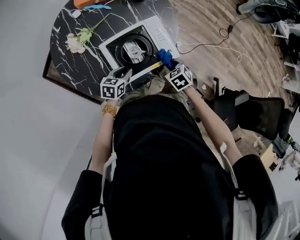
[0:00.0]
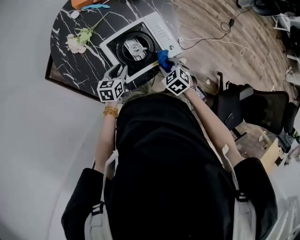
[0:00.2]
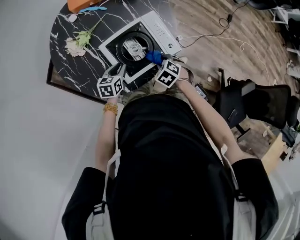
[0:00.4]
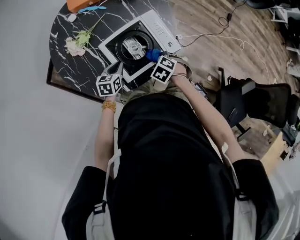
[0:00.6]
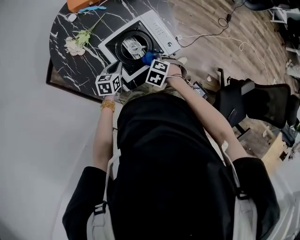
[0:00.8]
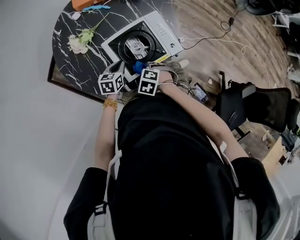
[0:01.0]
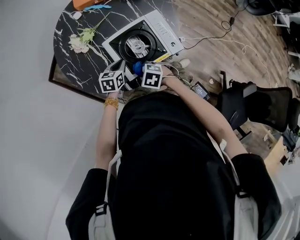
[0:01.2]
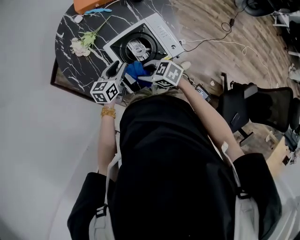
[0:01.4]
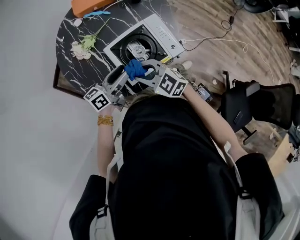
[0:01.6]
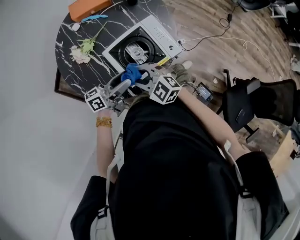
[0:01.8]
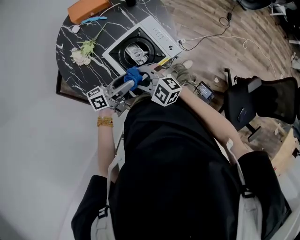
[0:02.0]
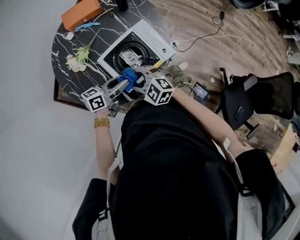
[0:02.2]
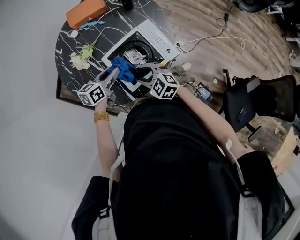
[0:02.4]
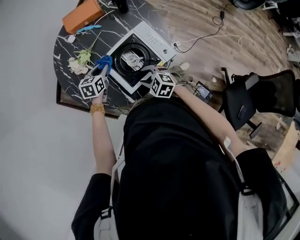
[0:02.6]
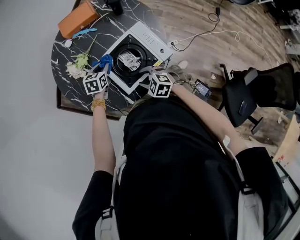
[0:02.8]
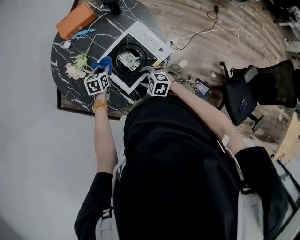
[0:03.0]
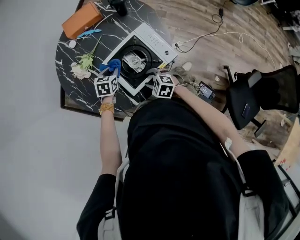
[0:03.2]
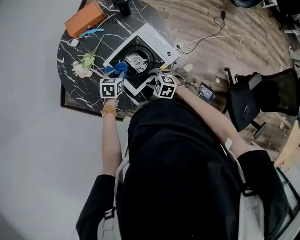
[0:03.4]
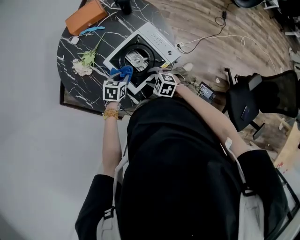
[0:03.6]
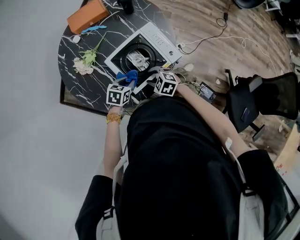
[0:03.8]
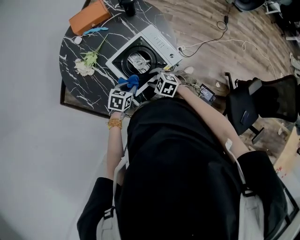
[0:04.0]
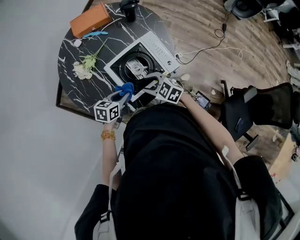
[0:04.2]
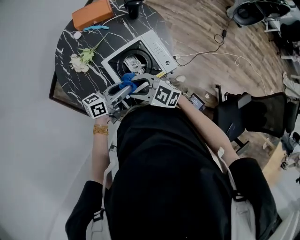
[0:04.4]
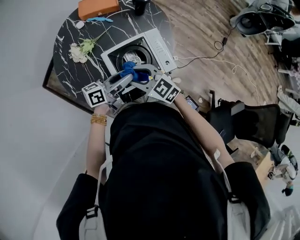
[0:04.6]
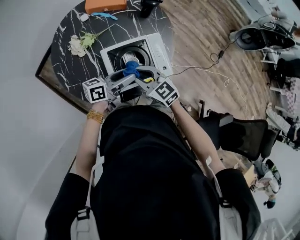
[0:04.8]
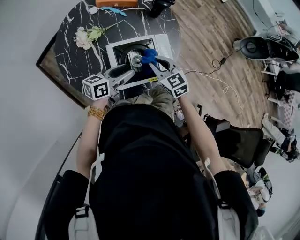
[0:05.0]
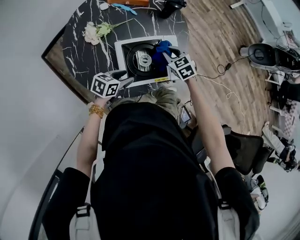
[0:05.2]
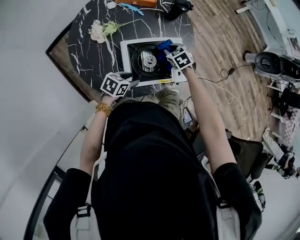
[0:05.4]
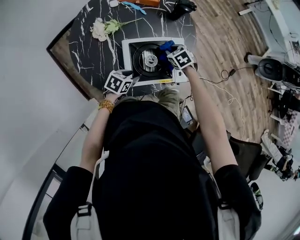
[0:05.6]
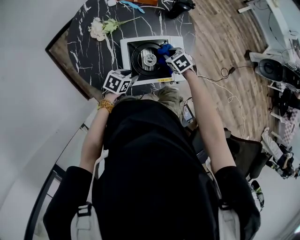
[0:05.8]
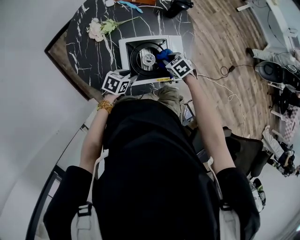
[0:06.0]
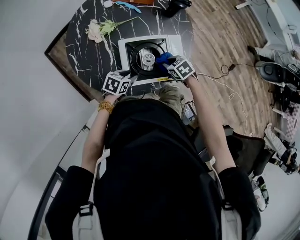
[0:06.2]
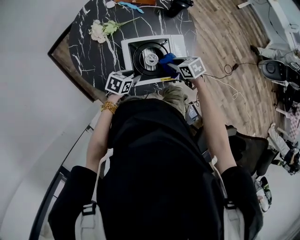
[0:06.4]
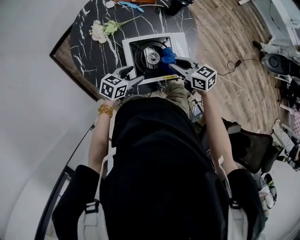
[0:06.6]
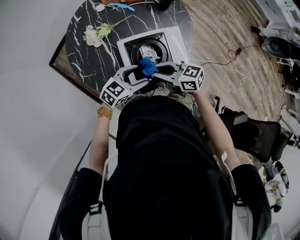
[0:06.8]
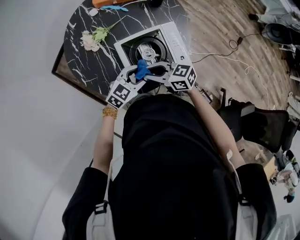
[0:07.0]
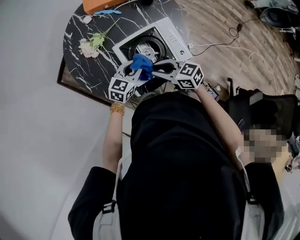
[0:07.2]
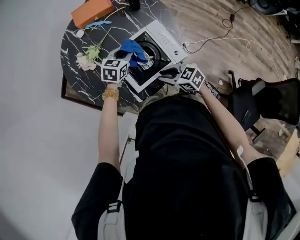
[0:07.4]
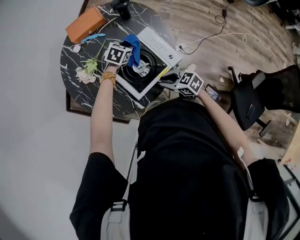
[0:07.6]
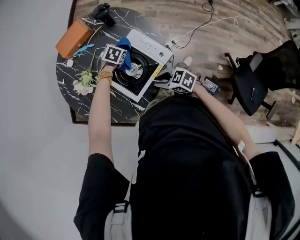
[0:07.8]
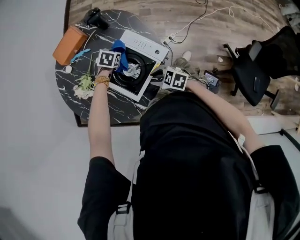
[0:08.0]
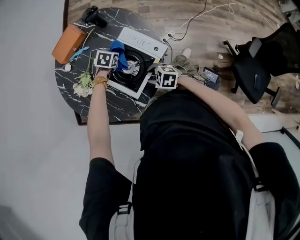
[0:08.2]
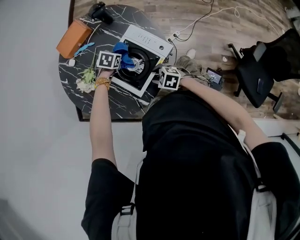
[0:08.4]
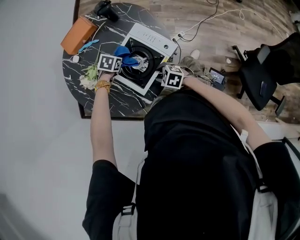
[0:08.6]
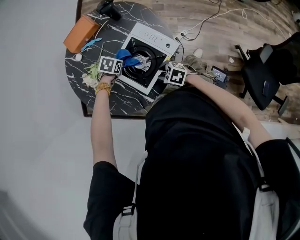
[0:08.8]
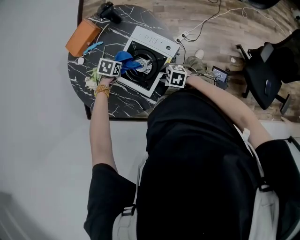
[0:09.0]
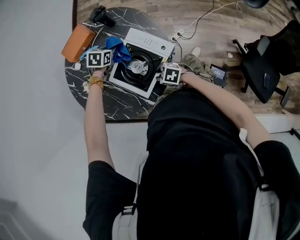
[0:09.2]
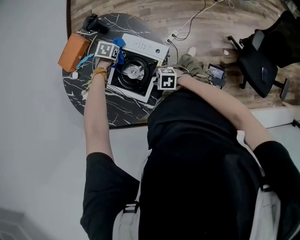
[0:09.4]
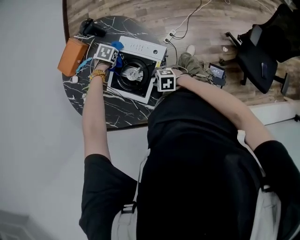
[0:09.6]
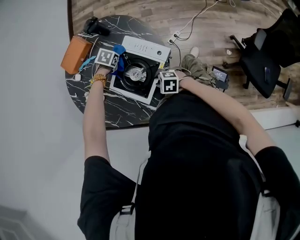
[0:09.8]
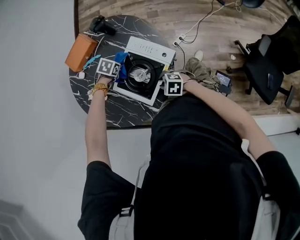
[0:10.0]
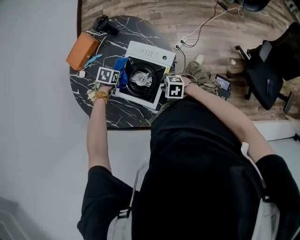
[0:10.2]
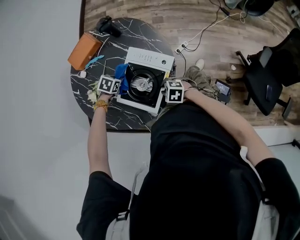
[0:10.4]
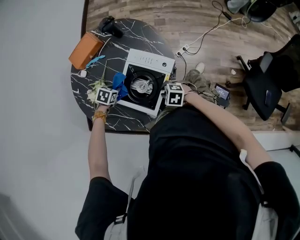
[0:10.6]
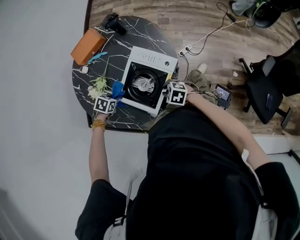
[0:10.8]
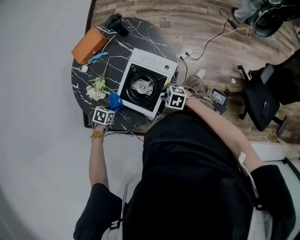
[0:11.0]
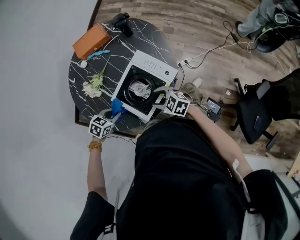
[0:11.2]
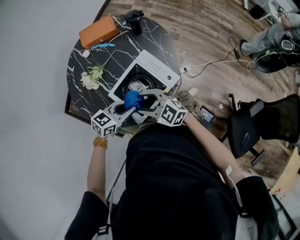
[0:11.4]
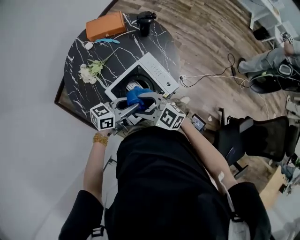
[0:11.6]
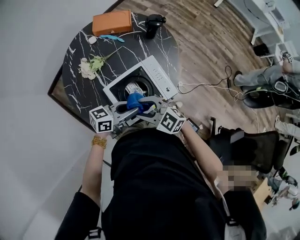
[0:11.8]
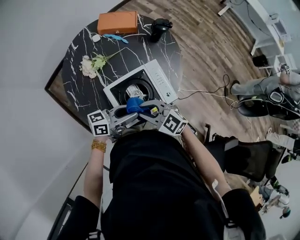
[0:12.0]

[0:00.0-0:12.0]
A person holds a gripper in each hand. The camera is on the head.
0:00.0 to 0:01.6: The left gripper travels upward by some 15 cm, points its fingers roughly 40 degrees further upward, and opens up, while the right gripper shifts by roughly 25 cm, and tilts its fingers some 40 degrees upward.
0:01.6 to 0:03.0: Both grippers travel together downward, roughly 15 cm. The right gripper rotates about 30 degrees. Meanwhile the left gripper tips its fingers downward by some 50 degrees, and closes its fingers.
0:03.0 to 0:04.4: The right gripper moves upward, some 15 cm, and changes its angle by roughly 30 degrees; the left gripper moves some 20 cm, and tilts its fingers some 40 degrees upward.
0:04.4 to 0:06.0: The left gripper travels downward by some 15 cm, and points its fingers approximately 40 degrees further downward. Meanwhile the right gripper moves roughly 20 cm, points its fingers about 40 degrees further downward, and closes.
0:06.0 to 0:07.6: The right gripper moves approximately 15 cm, and points its fingers approximately 30 degrees further upward. Meanwhile the left gripper travels upward and back again, approximately 10 cm each way, and rolls clockwise, seen from behind, by about 40 degrees.
0:07.6 to 0:09.0: The left gripper moves approximately 10 cm. The right gripper travels downward by about 5 cm, and swivels some 20 degrees.
0:10.4 to 0:12.0: The left gripper ends up some 25 cm from where it was, and tips its fingers upward by some 80 degrees. Meanwhile the right gripper goes about 15 cm upward, tilts its fingers approximately 30 degrees upward, and opens, then closes once more.

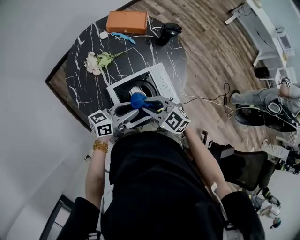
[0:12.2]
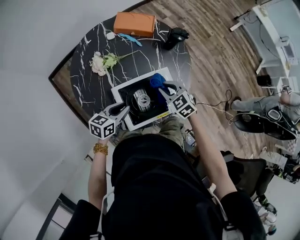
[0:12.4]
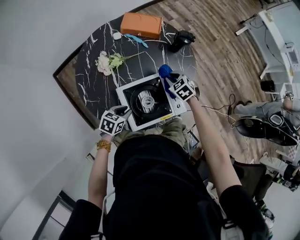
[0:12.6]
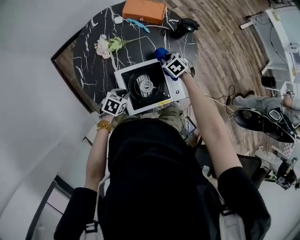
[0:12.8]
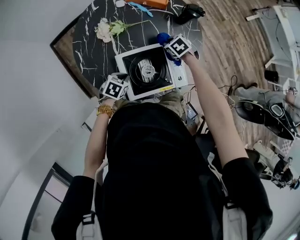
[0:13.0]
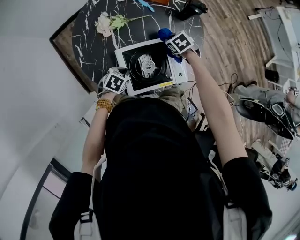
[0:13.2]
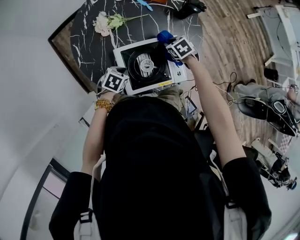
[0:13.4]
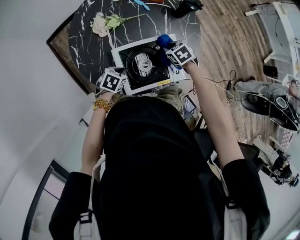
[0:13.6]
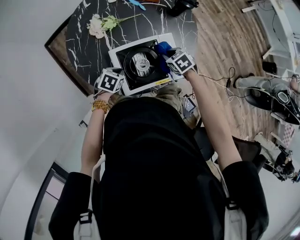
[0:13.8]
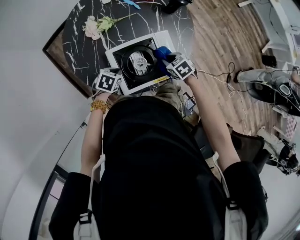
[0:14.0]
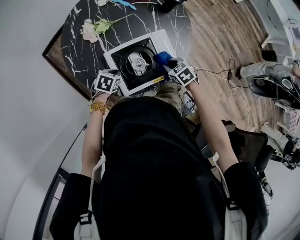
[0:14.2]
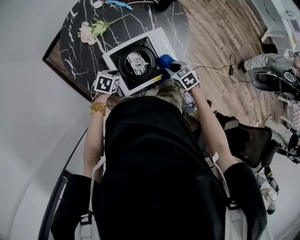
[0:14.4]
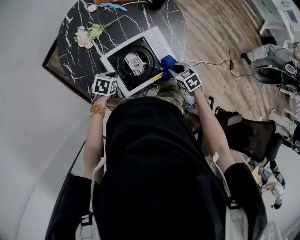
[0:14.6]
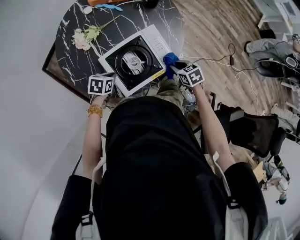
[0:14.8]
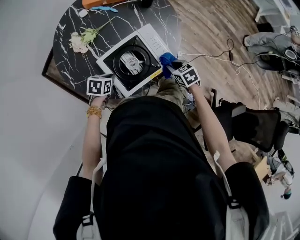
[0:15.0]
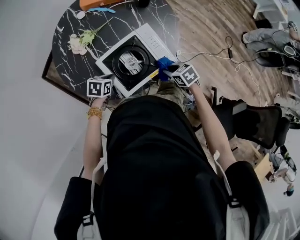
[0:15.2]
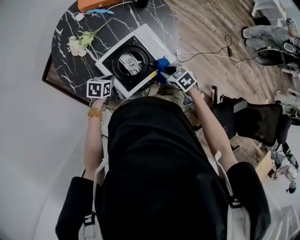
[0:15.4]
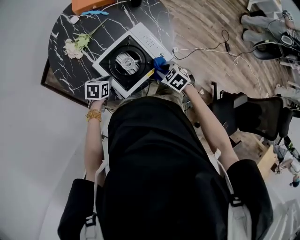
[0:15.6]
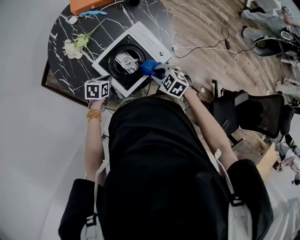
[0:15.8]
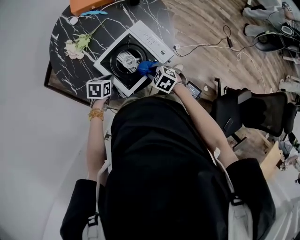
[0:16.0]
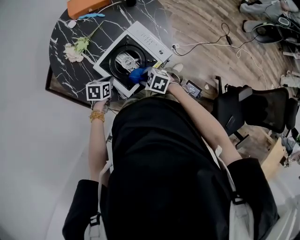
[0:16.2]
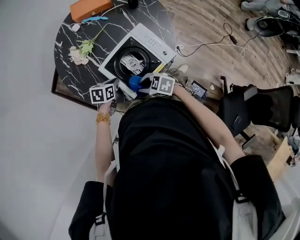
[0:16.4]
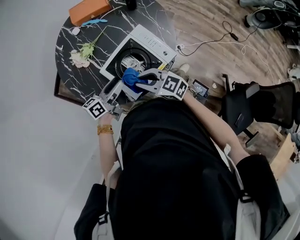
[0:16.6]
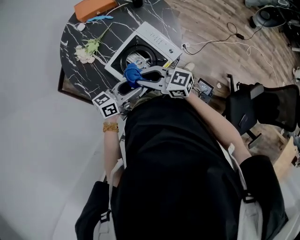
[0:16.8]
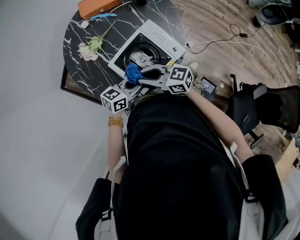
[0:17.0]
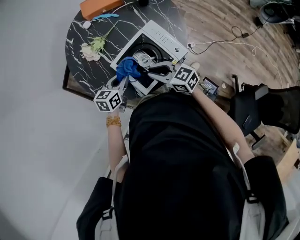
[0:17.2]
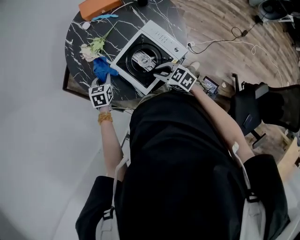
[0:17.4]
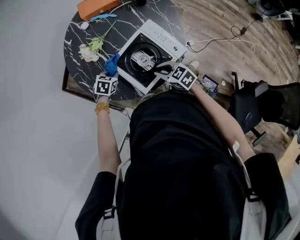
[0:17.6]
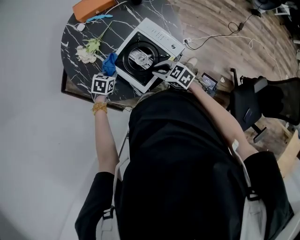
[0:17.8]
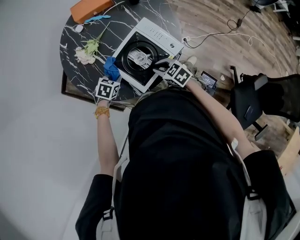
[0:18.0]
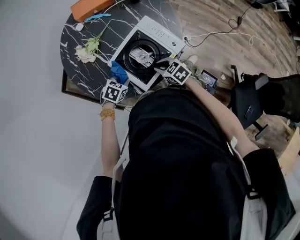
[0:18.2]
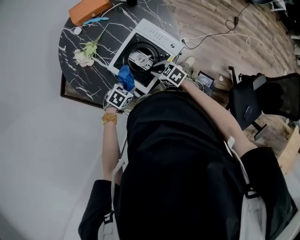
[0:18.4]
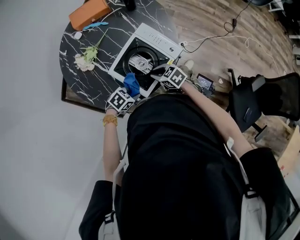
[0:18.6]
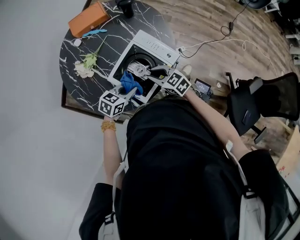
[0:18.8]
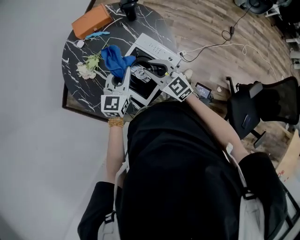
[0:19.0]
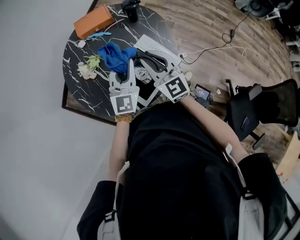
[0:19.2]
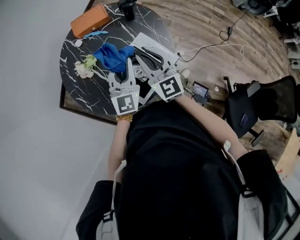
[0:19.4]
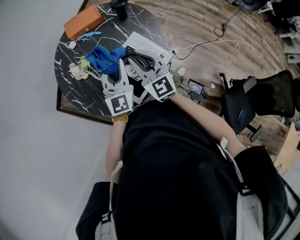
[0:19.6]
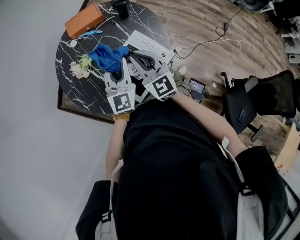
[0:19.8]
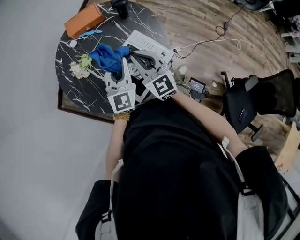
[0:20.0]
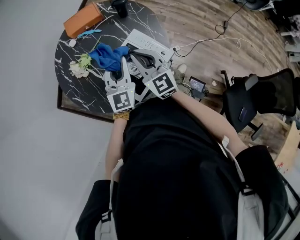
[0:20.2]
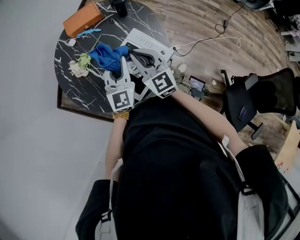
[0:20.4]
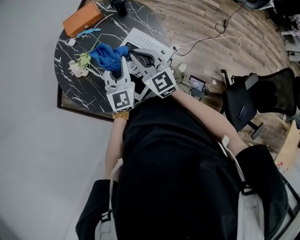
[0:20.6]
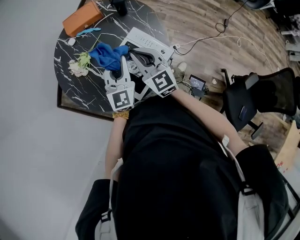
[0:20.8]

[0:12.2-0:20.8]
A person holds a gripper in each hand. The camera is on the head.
0:12.2 to 0:13.6: The right gripper moves about 20 cm, and tilts its fingers about 30 degrees downward; the left gripper moves downward, roughly 15 cm, angles its fingers downward, by roughly 60 degrees, and closes up.
0:13.6 to 0:15.0: The right gripper shifts some 20 cm backward and to the right, and rotates roughly 30 degrees.
0:15.0 to 0:16.6: The left gripper travels upward by roughly 10 cm, tilts its fingers about 50 degrees upward, and opens up. Meanwhile the right gripper moves roughly 25 cm, and tilts its fingers approximately 40 degrees upward.
0:16.6 to 0:18.0: The two grippers go some 10 cm downward. The left gripper tips its fingers downward by about 60 degrees, and closes, while the right gripper turns by approximately 30 degrees.
0:18.0 to 0:19.4: The two grippers go some 25 cm upward. The right gripper tilts its fingers some 40 degrees upward, while the left gripper points its fingers some 70 degrees further upward.
0:19.4 to 0:20.8: The grippers move only a little.

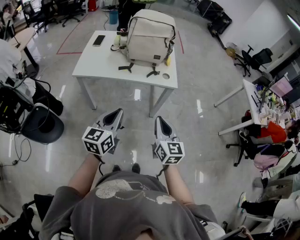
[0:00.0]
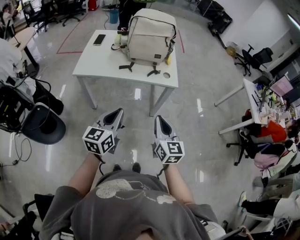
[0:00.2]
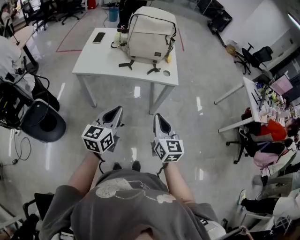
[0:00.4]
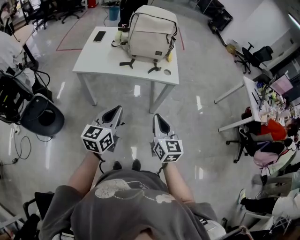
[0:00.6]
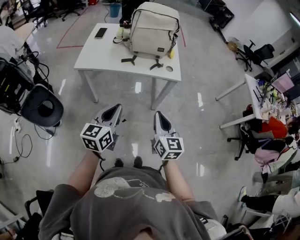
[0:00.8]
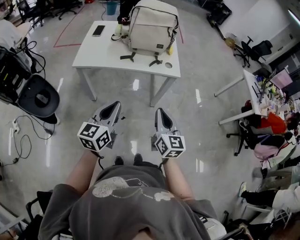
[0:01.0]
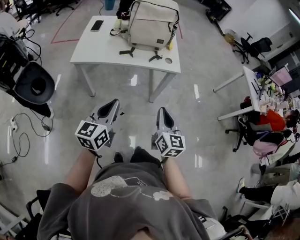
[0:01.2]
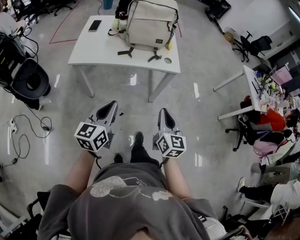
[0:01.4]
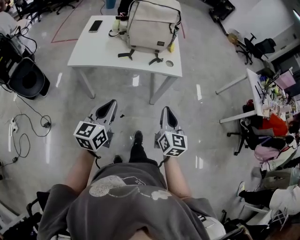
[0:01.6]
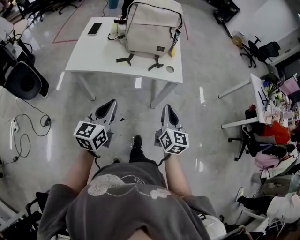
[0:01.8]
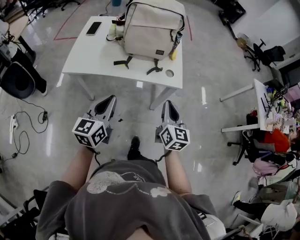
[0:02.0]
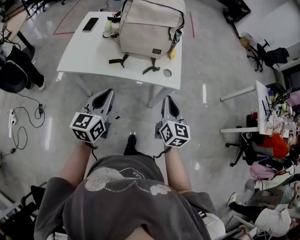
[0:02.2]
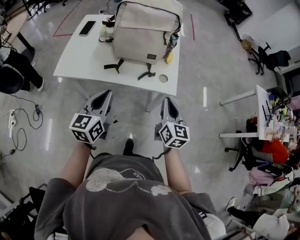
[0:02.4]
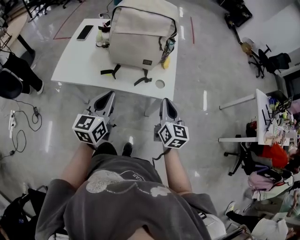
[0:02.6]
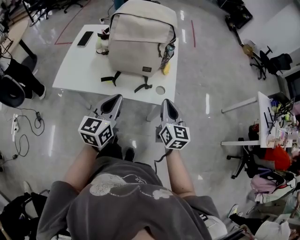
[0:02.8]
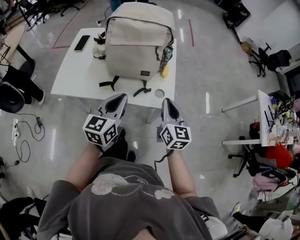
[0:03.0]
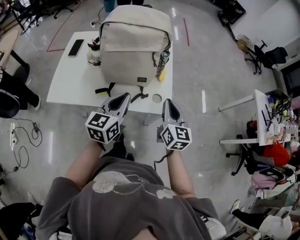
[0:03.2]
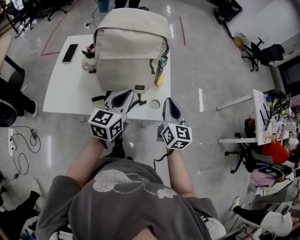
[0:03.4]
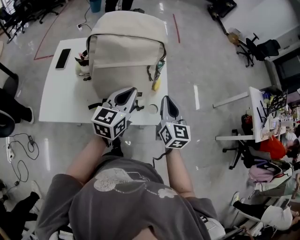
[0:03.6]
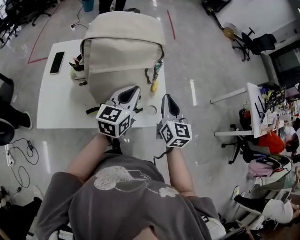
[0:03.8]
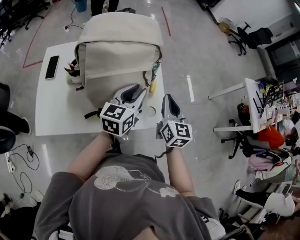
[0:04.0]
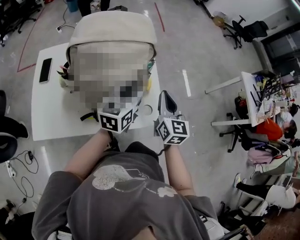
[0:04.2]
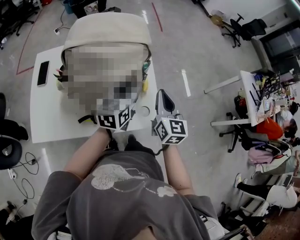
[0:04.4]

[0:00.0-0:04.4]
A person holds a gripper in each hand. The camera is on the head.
0:00.0 to 0:01.4: The grippers move only a little.
0:01.4 to 0:03.0: Both grippers travel together forward, about 30 cm.
0:03.0 to 0:04.4: The left gripper heads forward, covering approximately 25 cm, and opens its fingers. The right gripper goes approximately 15 cm forward.
